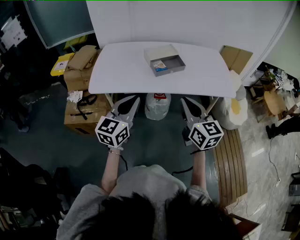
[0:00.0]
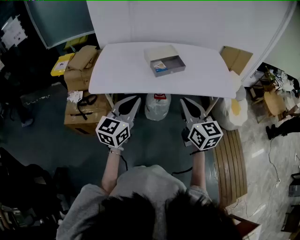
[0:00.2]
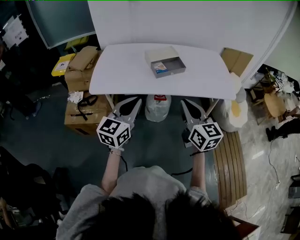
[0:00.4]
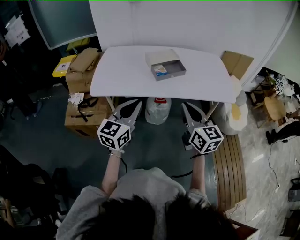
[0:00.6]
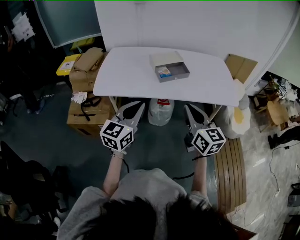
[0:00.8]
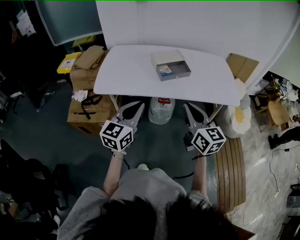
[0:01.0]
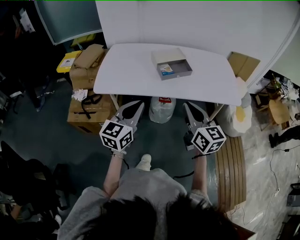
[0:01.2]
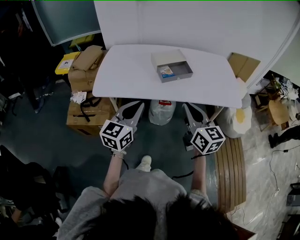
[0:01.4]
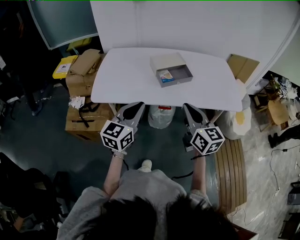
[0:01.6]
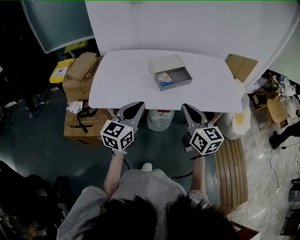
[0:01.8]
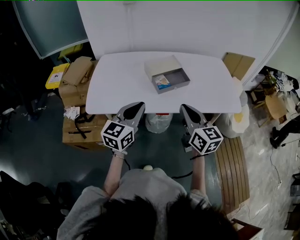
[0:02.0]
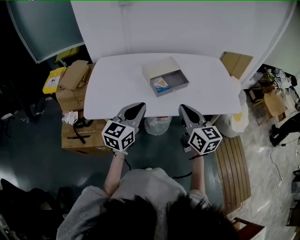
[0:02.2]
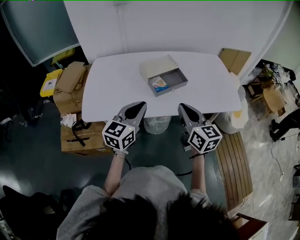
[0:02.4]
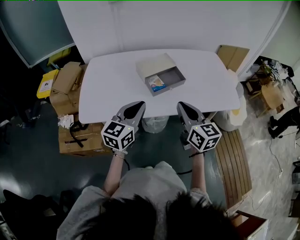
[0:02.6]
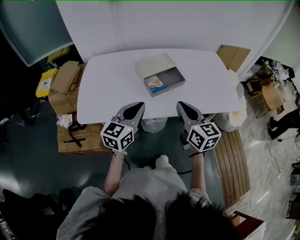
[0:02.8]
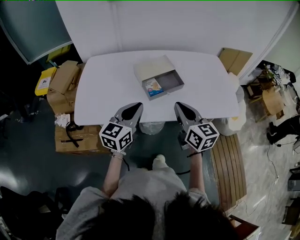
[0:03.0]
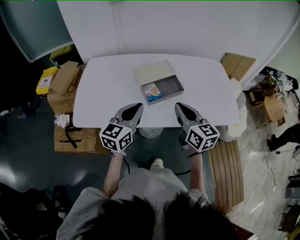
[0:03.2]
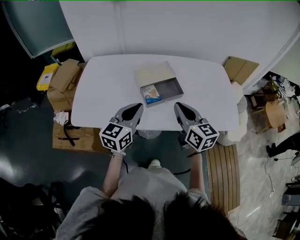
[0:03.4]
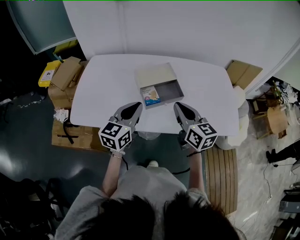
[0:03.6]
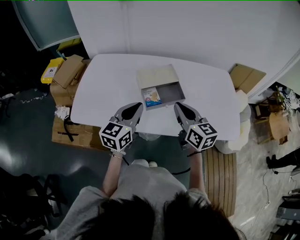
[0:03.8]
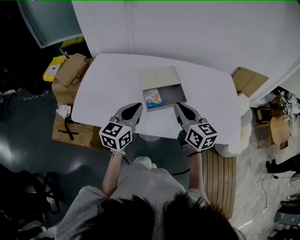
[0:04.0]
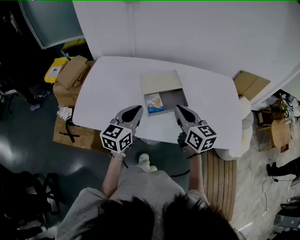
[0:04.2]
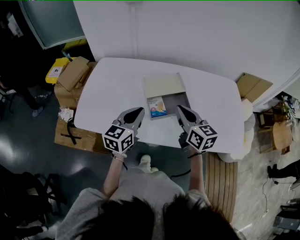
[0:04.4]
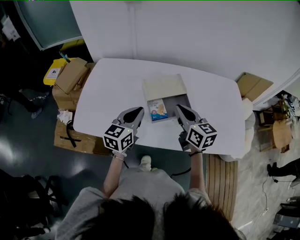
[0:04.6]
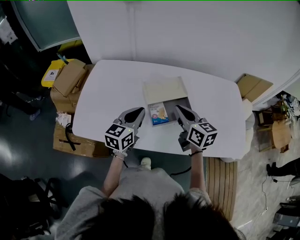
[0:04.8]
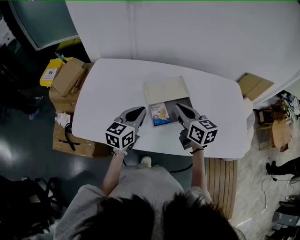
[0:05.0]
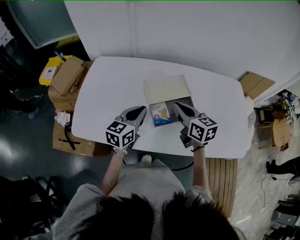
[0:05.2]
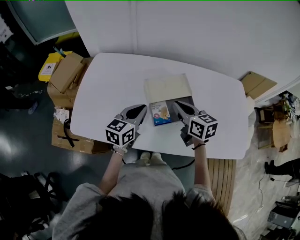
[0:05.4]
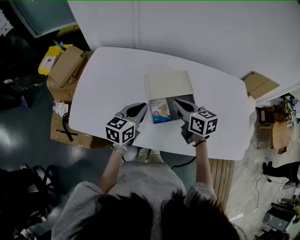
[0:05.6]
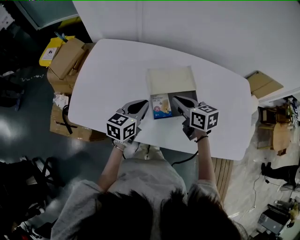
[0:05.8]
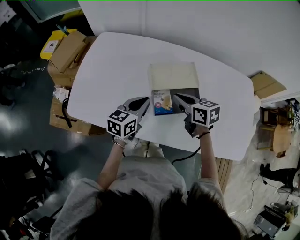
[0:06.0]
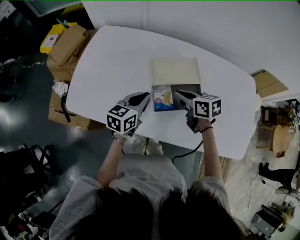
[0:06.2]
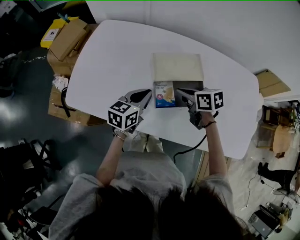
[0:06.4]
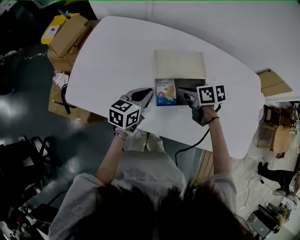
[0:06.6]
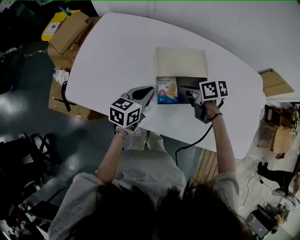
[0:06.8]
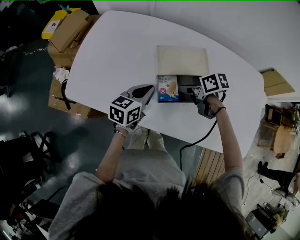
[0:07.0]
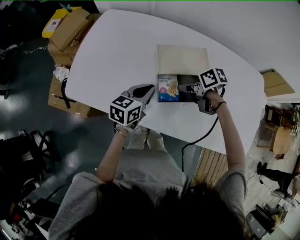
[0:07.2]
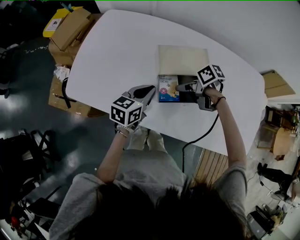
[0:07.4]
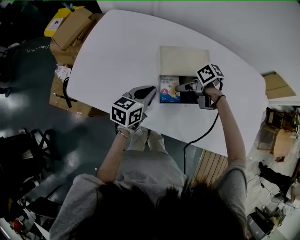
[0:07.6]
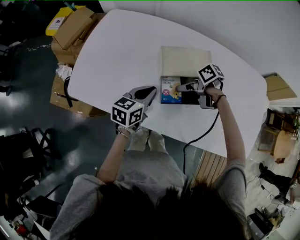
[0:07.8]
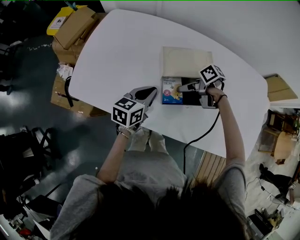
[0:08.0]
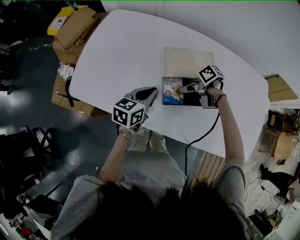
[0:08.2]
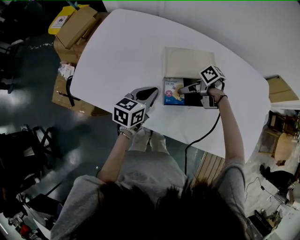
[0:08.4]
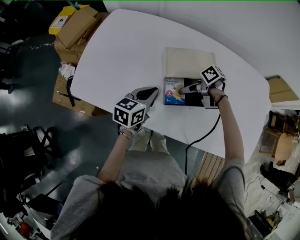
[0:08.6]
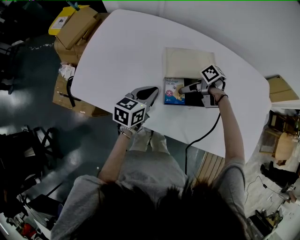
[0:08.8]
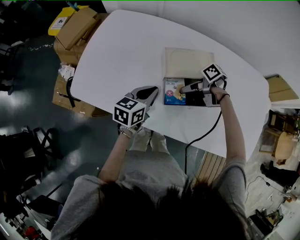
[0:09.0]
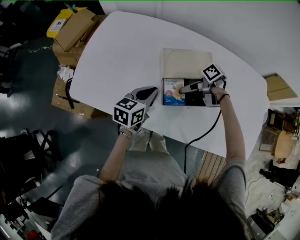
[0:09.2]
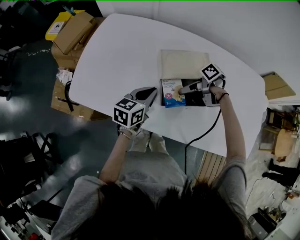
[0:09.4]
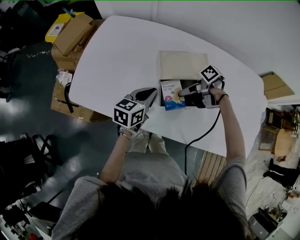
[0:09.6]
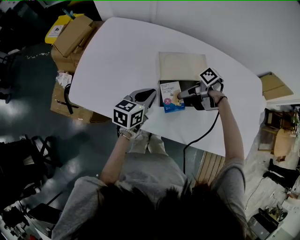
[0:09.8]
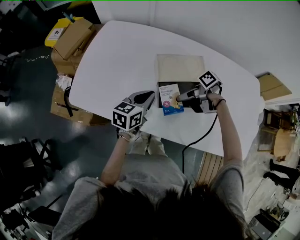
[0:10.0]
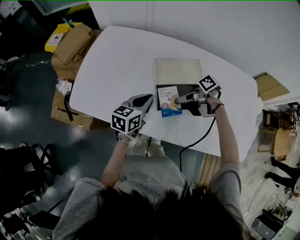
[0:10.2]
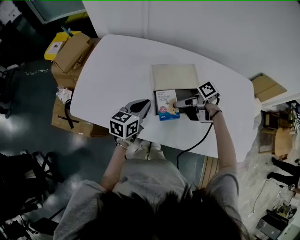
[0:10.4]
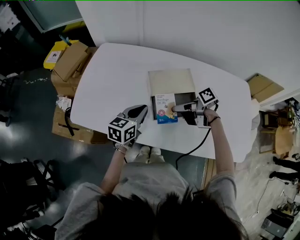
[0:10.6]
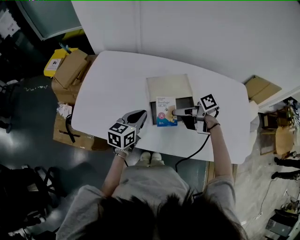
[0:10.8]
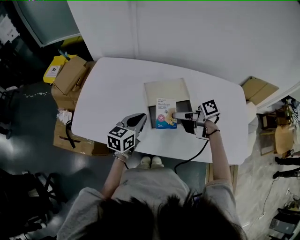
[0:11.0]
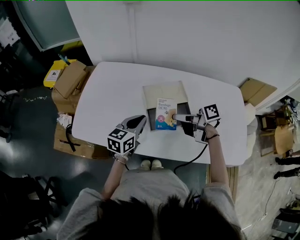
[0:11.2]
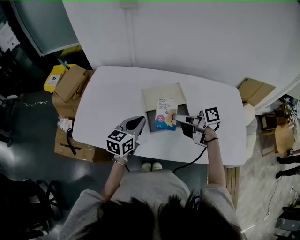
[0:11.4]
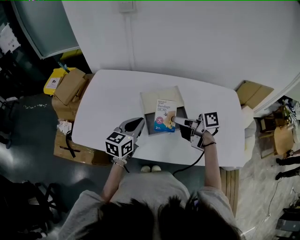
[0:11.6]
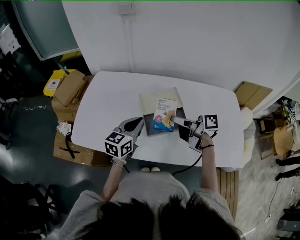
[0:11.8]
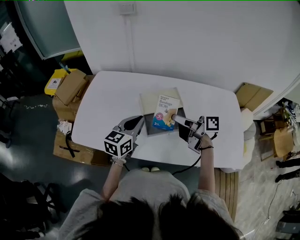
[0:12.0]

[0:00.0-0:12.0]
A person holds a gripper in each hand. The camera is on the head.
0:00.0 to 0:01.6: Both grippers travel together forward, roughly 5 cm.
0:01.6 to 0:03.0: The grippers both shift forward by roughly 15 cm.
0:03.0 to 0:04.4: Both grippers travel together forward, roughly 10 cm.
0:04.4 to 0:06.0: Both grippers move downward and forward, approximately 15 cm. The right gripper turns by some 30 degrees.
0:06.0 to 0:07.6: The right gripper heads downward, covering about 10 cm, rotates about 50 degrees, and opens.
0:07.6 to 0:09.0: The grippers make only small movements.
0:09.0 to 0:10.4: The right gripper changes place by approximately 5 cm.
0:10.4 to 0:12.0: Both grippers move upward, some 10 cm. The right gripper turns by roughly 50 degrees.

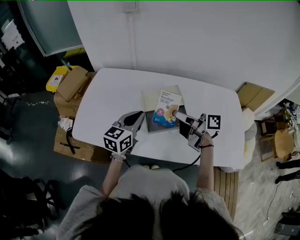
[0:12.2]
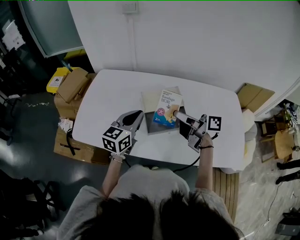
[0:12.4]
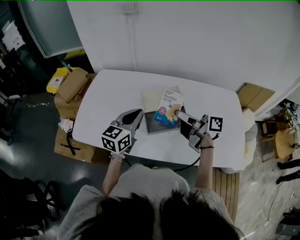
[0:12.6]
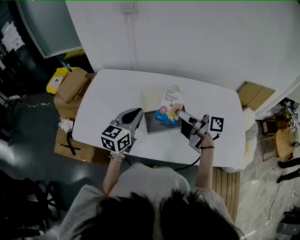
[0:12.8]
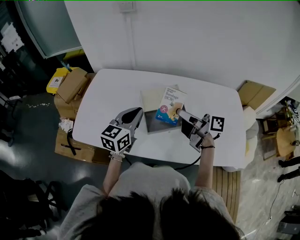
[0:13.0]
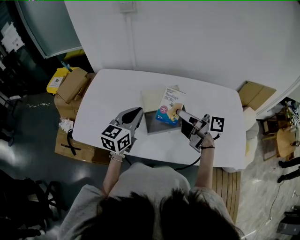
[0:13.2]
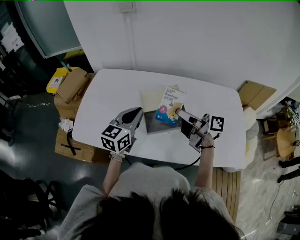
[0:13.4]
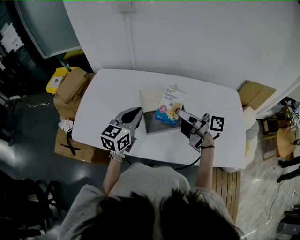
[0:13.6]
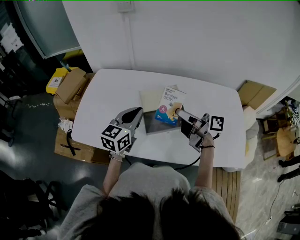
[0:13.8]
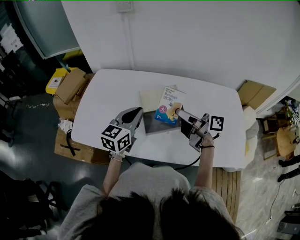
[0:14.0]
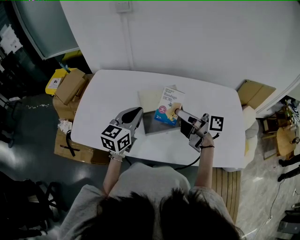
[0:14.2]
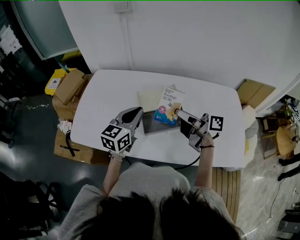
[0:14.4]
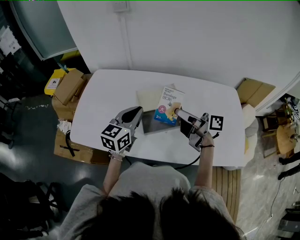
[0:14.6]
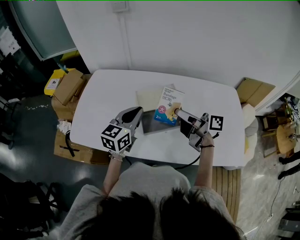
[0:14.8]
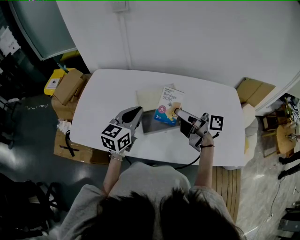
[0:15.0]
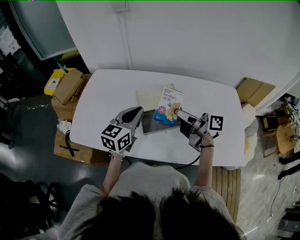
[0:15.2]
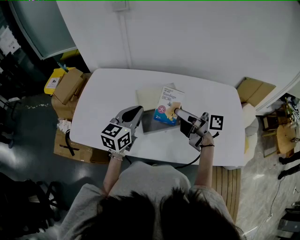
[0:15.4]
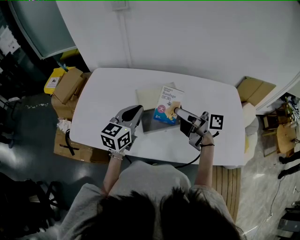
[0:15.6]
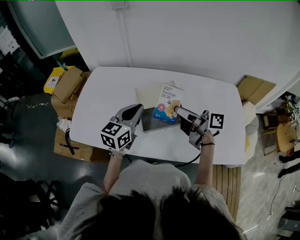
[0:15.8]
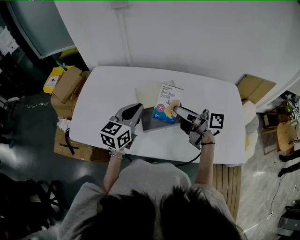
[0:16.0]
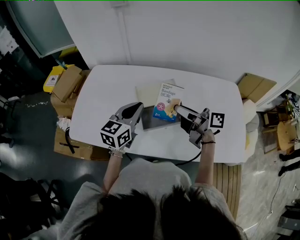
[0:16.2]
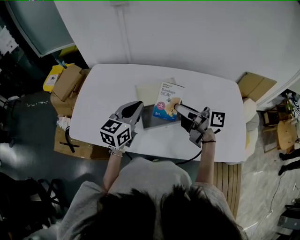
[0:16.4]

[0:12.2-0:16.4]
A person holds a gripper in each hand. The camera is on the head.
0:12.2 to 0:13.6: The grippers move only a little.
0:13.6 to 0:15.0: Both grippers stay about where they are.
0:15.0 to 0:16.4: The grippers make only small movements.

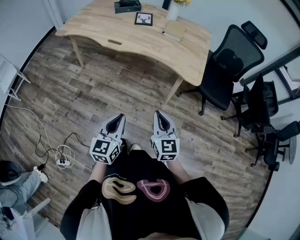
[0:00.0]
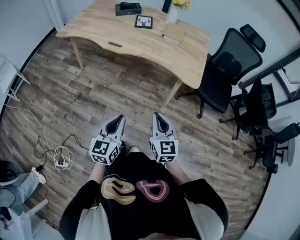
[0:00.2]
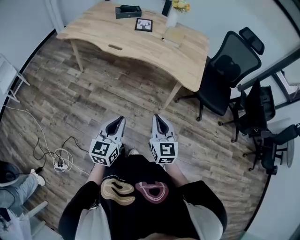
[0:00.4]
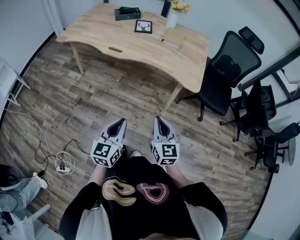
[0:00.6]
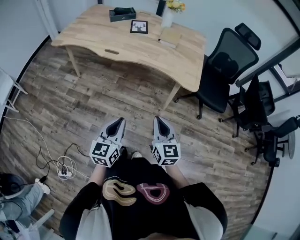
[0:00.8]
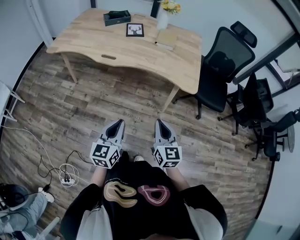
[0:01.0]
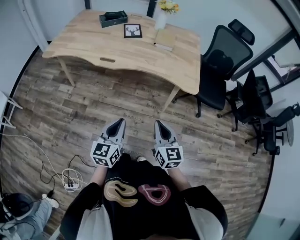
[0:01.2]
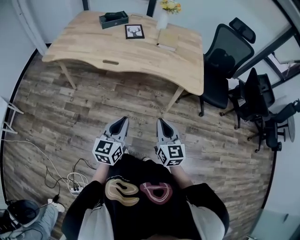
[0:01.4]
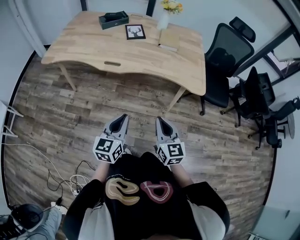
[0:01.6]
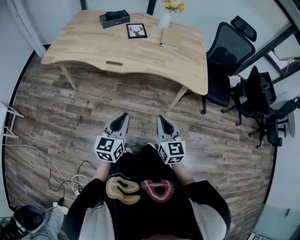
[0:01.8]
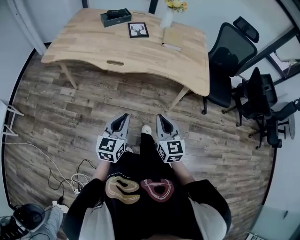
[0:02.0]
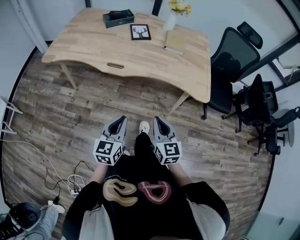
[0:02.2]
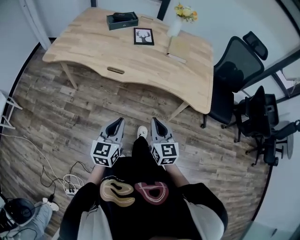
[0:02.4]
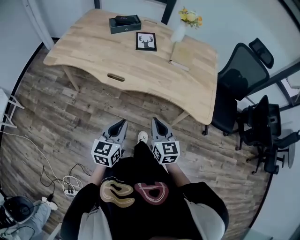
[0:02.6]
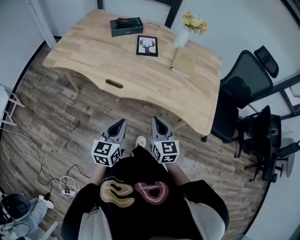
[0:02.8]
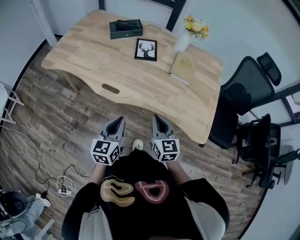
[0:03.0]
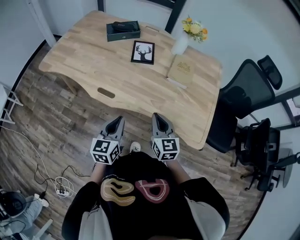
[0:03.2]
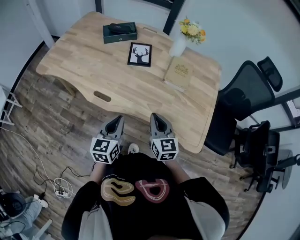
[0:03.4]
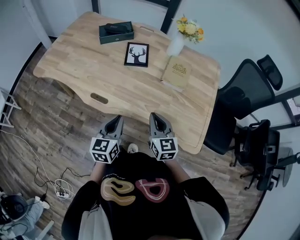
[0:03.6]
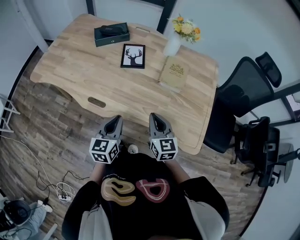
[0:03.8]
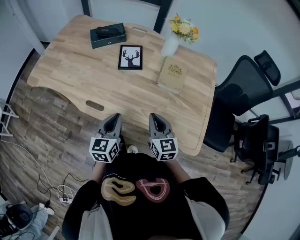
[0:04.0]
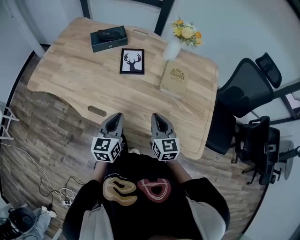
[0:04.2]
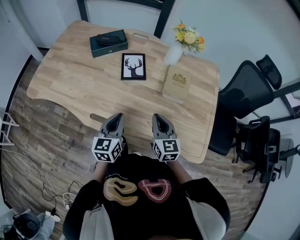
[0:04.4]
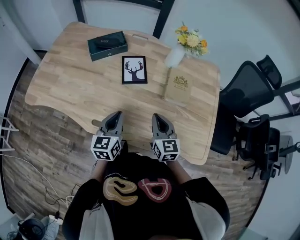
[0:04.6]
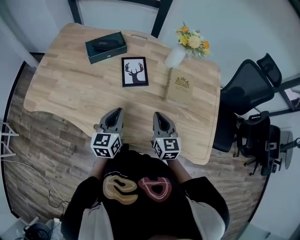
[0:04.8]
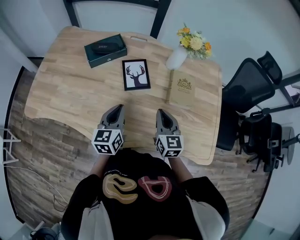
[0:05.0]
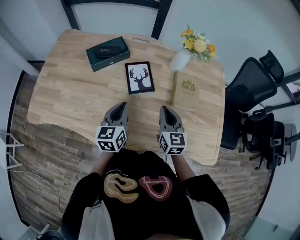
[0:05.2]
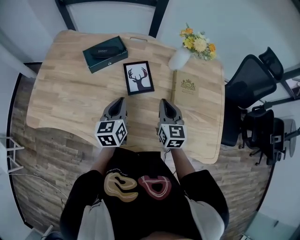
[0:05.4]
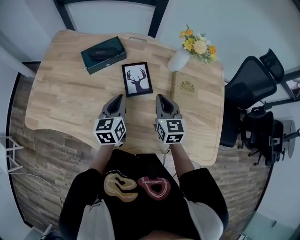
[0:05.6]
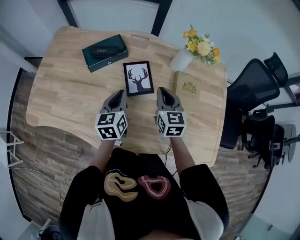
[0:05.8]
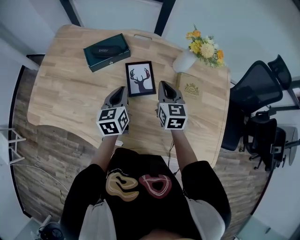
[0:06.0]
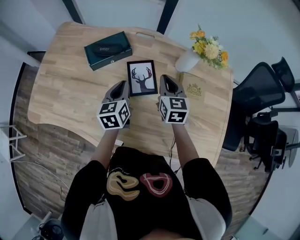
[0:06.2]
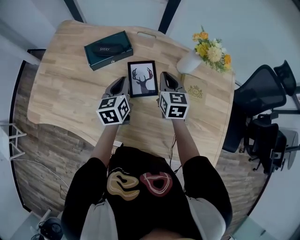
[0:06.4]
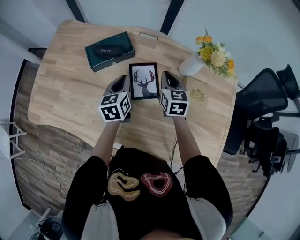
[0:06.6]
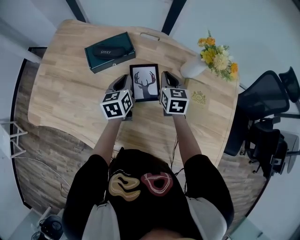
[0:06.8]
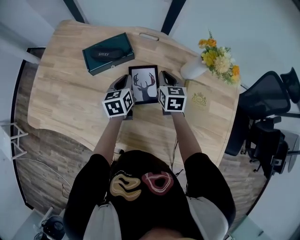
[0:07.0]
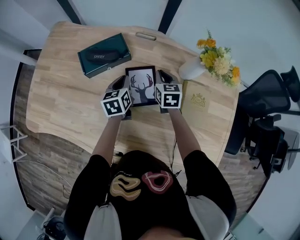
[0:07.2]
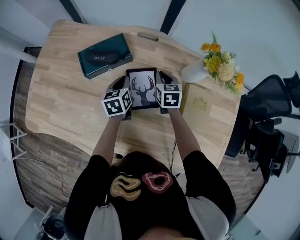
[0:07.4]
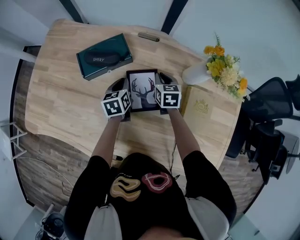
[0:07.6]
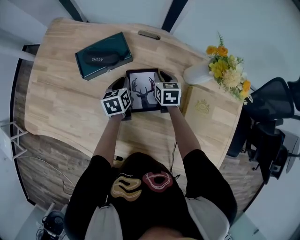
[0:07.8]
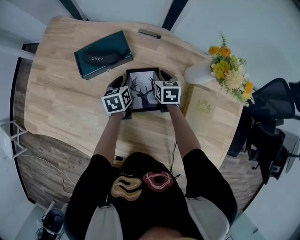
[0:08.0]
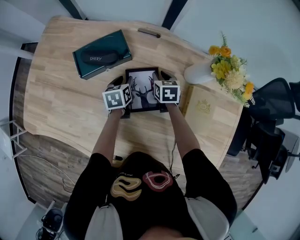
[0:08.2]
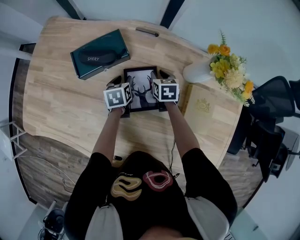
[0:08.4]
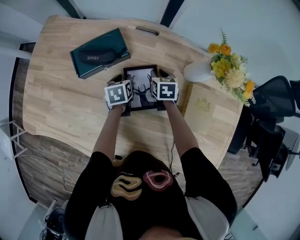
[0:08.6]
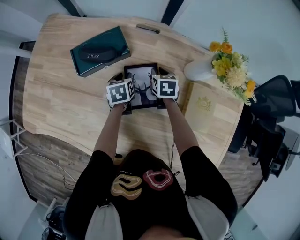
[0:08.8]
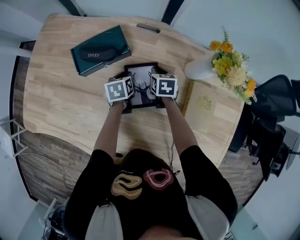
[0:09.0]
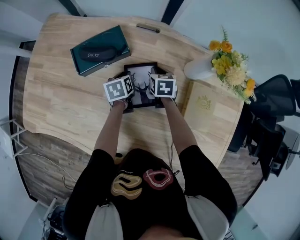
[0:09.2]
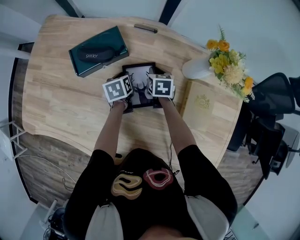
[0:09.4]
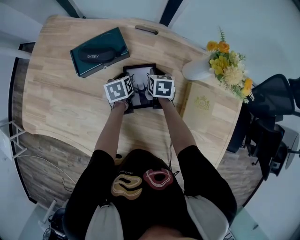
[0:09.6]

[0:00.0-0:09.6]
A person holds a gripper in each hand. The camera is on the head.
0:00.0 to 0:01.6: The left gripper travels forward and to the left by approximately 20 cm, while the right gripper heads to the left and forward, covering roughly 15 cm.
0:01.6 to 0:03.2: Both grippers move forward, roughly 30 cm.
0:03.2 to 0:04.8: Both grippers travel together forward, roughly 20 cm.
0:04.8 to 0:06.4: The two grippers go roughly 25 cm forward.
0:06.4 to 0:08.0: The grippers both shift downward and forward by roughly 20 cm. The right gripper swivels approximately 20 degrees, and opens. Meanwhile the left gripper opens up.
0:08.0 to 0:09.6: The grippers make only small movements.
